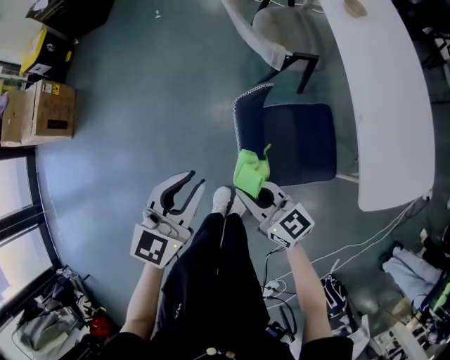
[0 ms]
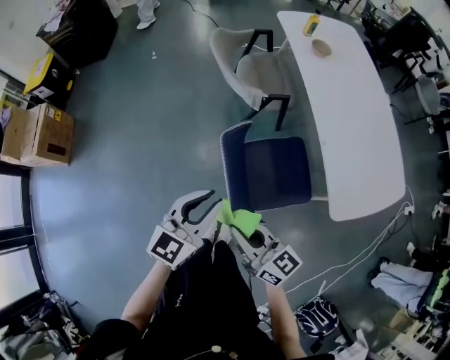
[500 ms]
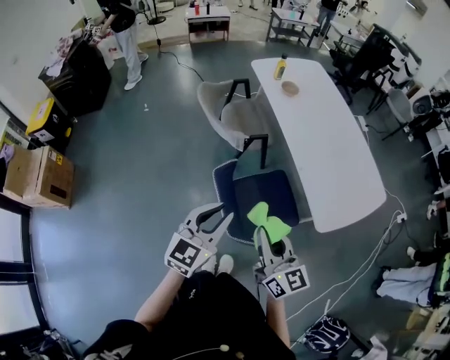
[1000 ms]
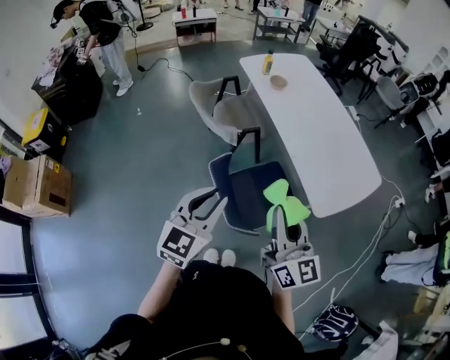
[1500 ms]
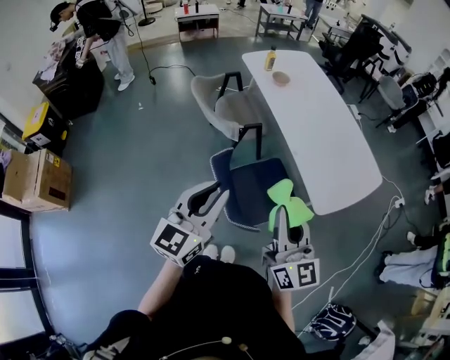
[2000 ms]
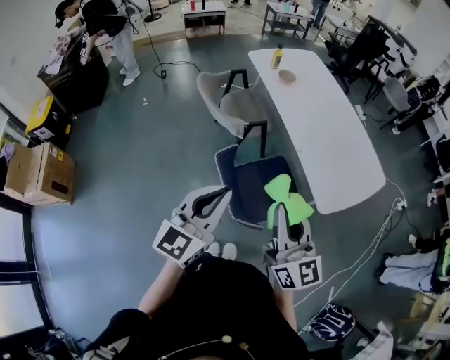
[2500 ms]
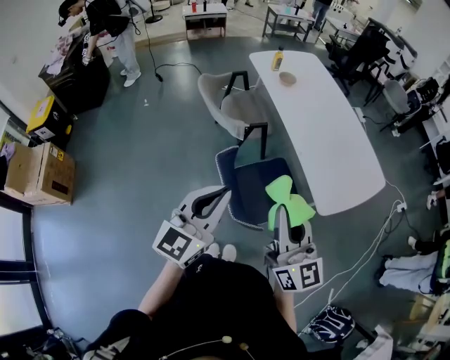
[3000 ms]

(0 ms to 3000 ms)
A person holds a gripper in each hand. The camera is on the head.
0 ms - 1500 ms: The right gripper goes approximately 30 cm upward, and changes its angle by some 60 degrees. Meanwhile the left gripper goes about 20 cm upward.
1500 ms - 3000 ms: There are only small adjustments of the grippers.

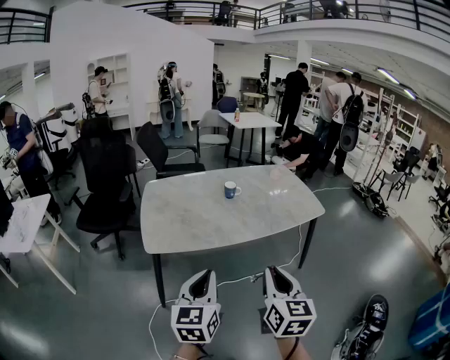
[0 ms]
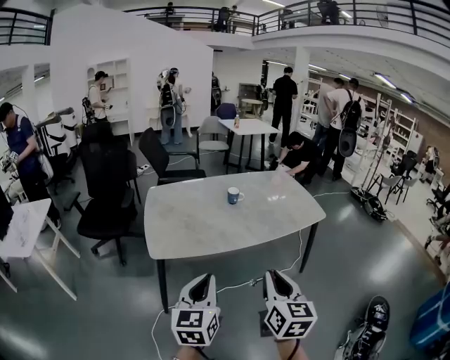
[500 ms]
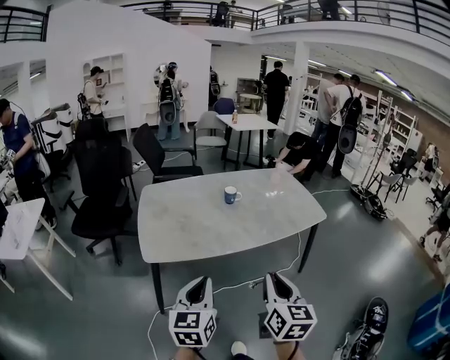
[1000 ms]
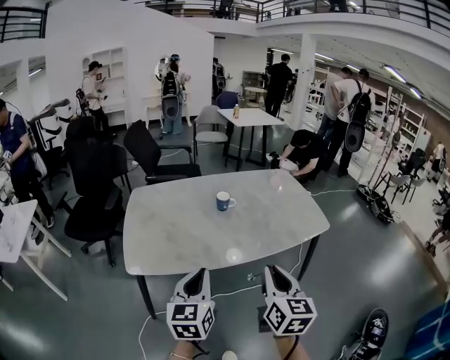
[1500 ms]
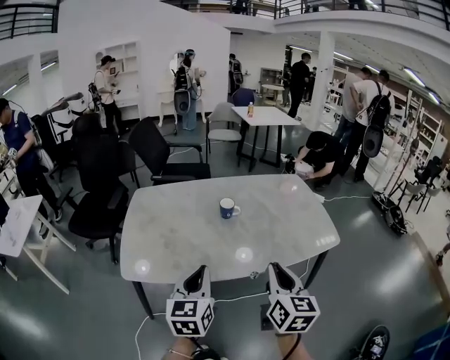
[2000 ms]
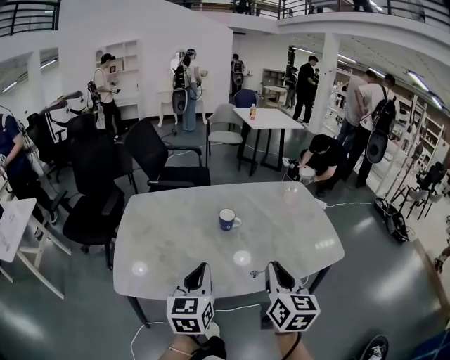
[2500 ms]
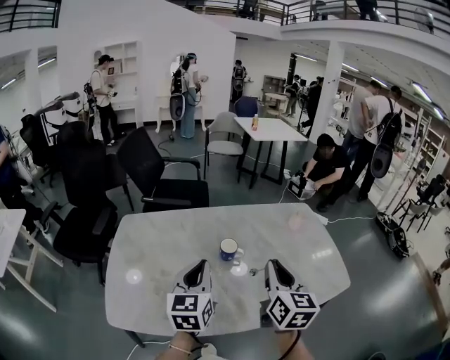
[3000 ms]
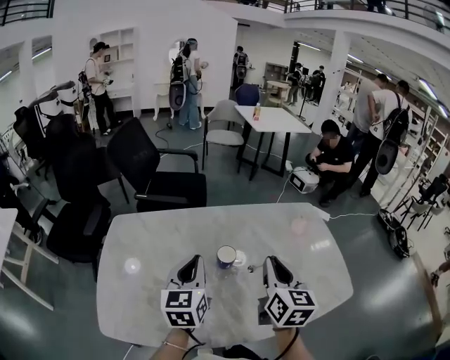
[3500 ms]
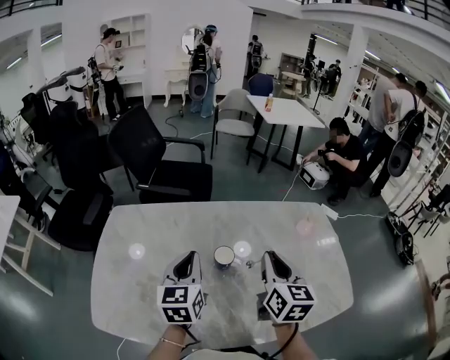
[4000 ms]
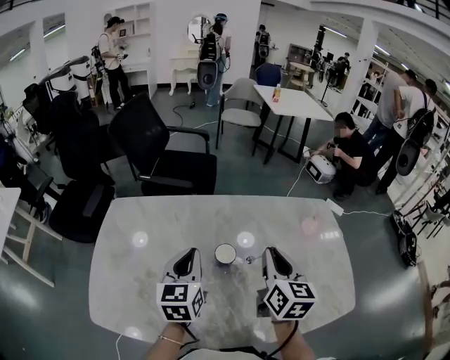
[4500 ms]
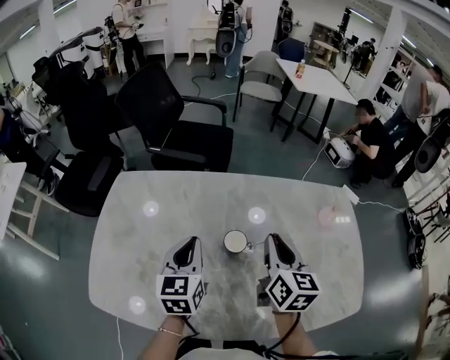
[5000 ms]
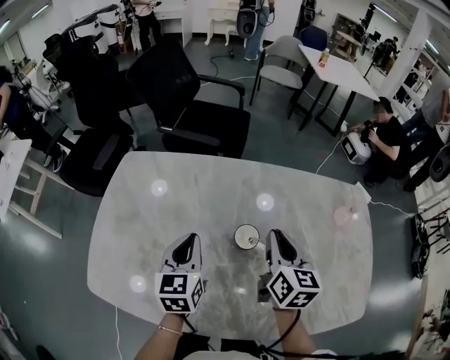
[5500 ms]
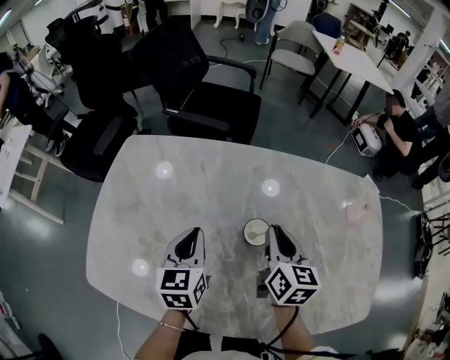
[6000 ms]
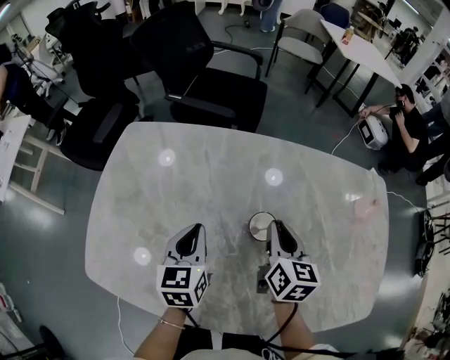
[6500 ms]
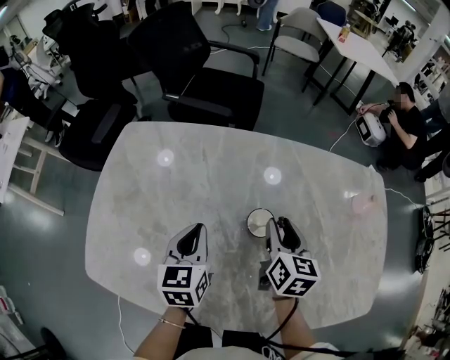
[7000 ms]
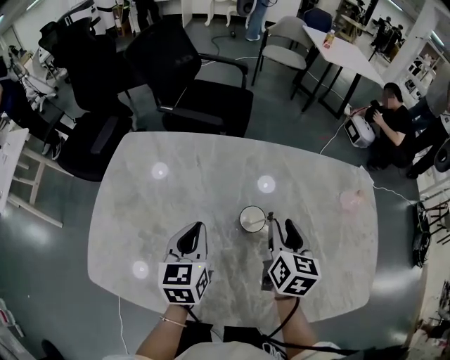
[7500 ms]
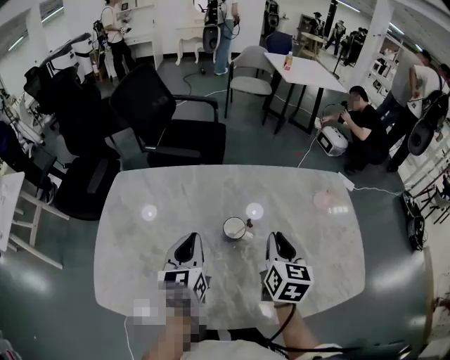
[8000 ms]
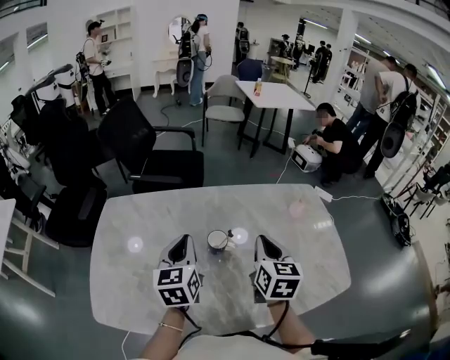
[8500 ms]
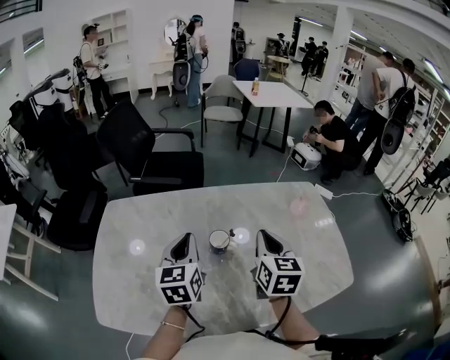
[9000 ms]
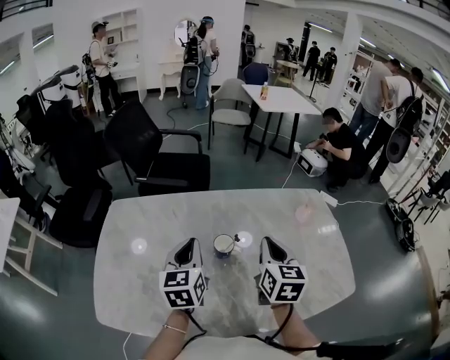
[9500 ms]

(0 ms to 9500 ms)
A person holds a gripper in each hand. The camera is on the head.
0 ms - 2000 ms: The grippers both shift forward by some 20 cm.
2000 ms - 4000 ms: Both grippers travel together forward, some 30 cm.
4000 ms - 5500 ms: The left gripper goes roughly 10 cm downward. Meanwhile the right gripper is displaced downward and forward by roughly 10 cm.
5500 ms - 7500 ms: The right gripper opens its fingers.
7500 ms - 9500 ms: The two grippers go some 10 cm upward. The right gripper closes its fingers.

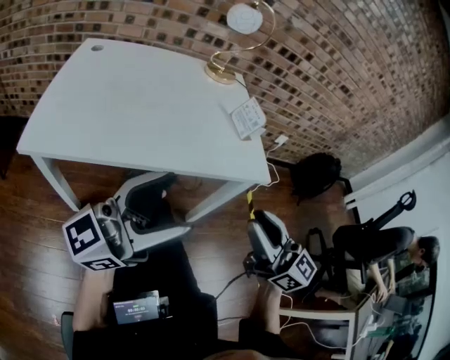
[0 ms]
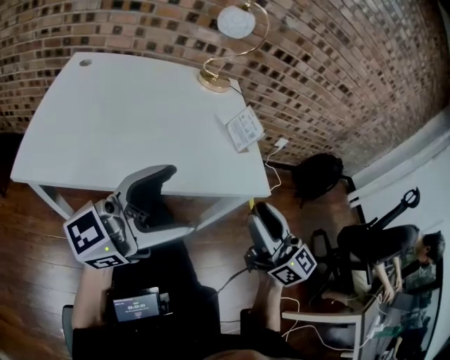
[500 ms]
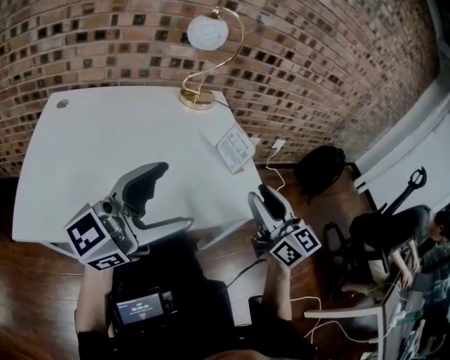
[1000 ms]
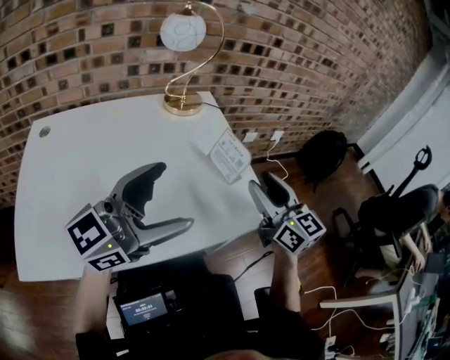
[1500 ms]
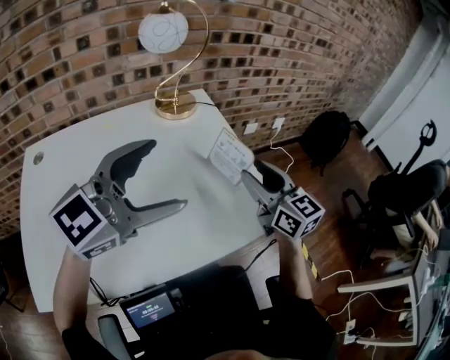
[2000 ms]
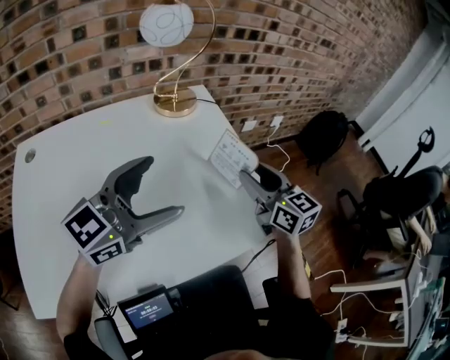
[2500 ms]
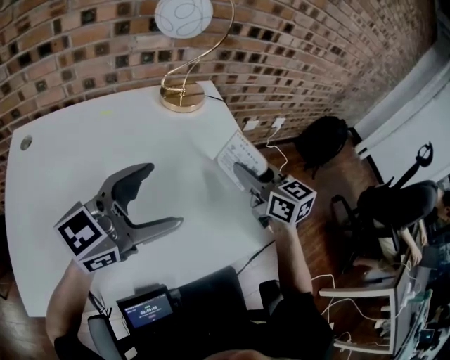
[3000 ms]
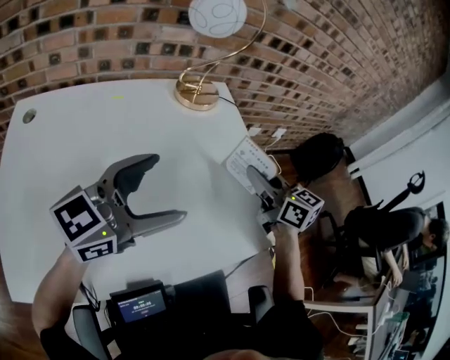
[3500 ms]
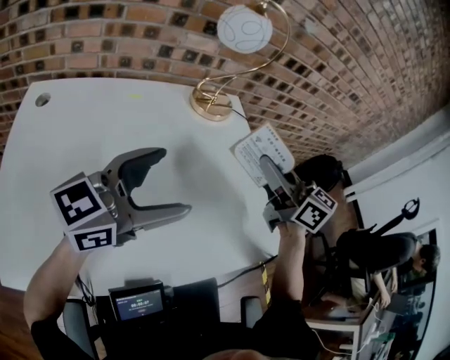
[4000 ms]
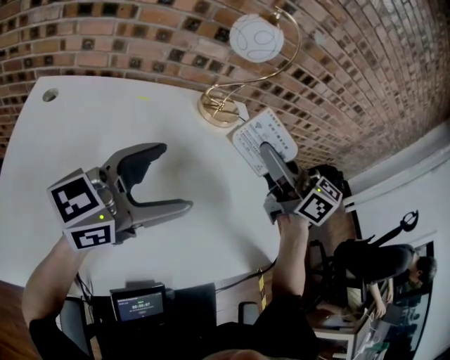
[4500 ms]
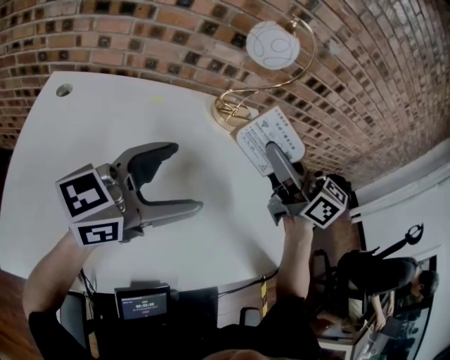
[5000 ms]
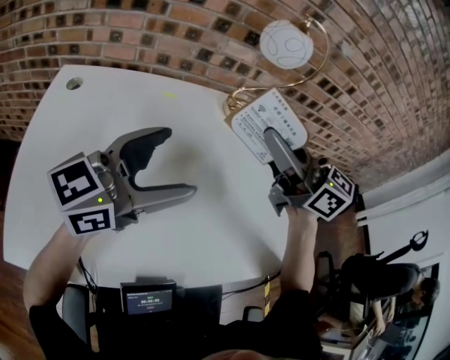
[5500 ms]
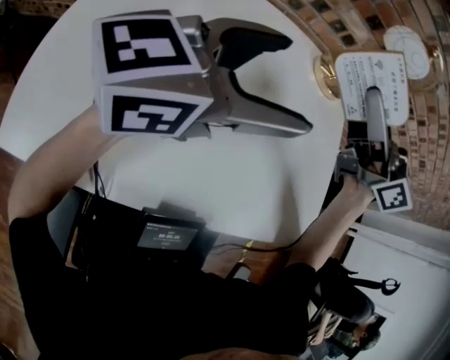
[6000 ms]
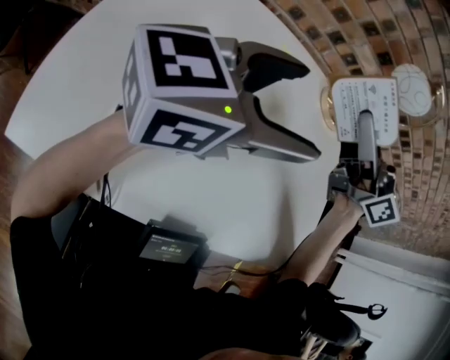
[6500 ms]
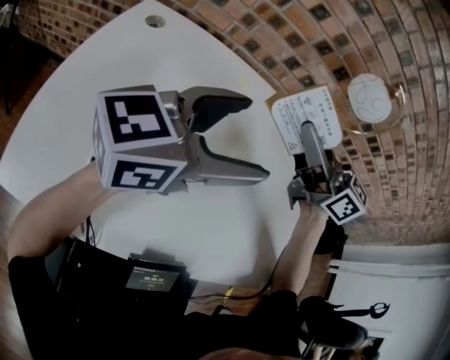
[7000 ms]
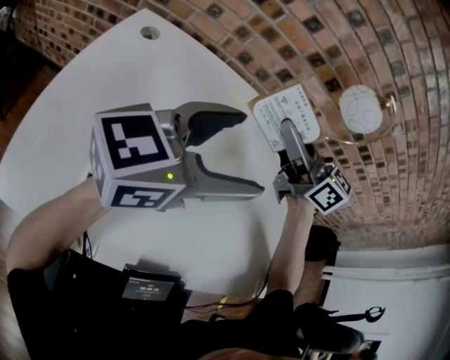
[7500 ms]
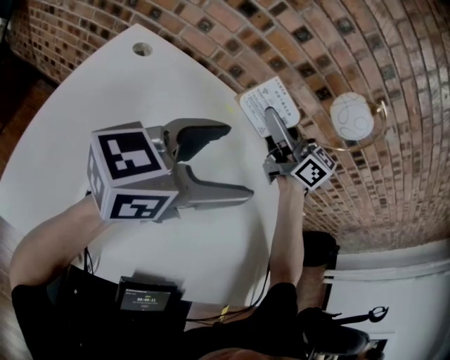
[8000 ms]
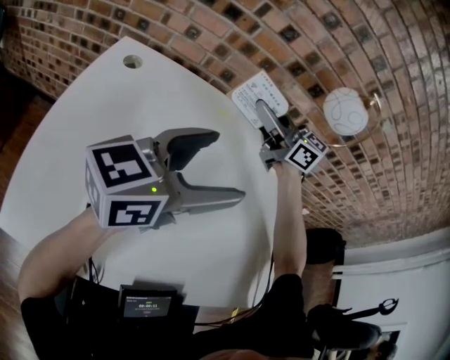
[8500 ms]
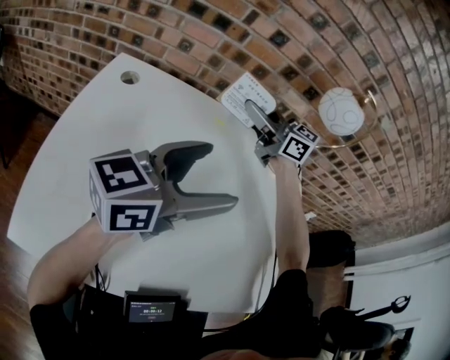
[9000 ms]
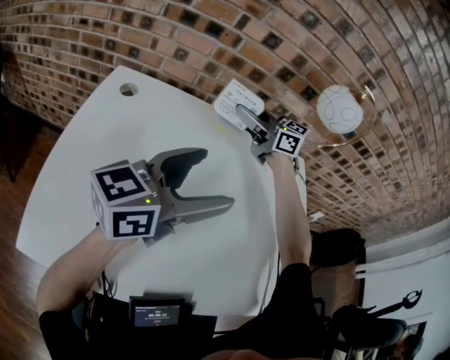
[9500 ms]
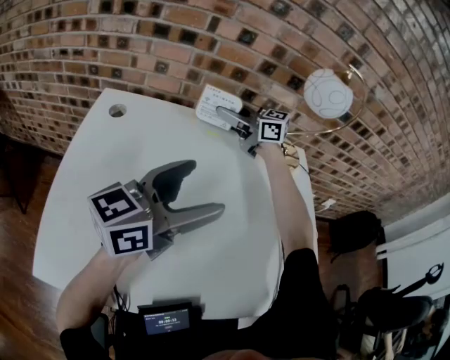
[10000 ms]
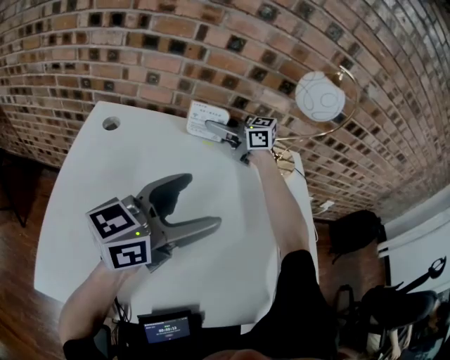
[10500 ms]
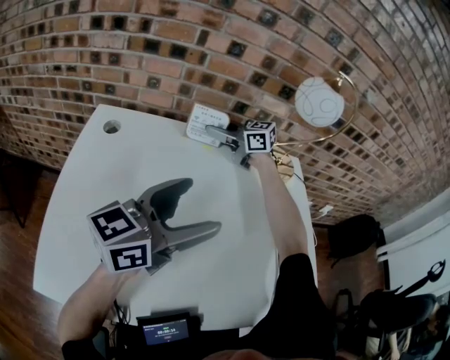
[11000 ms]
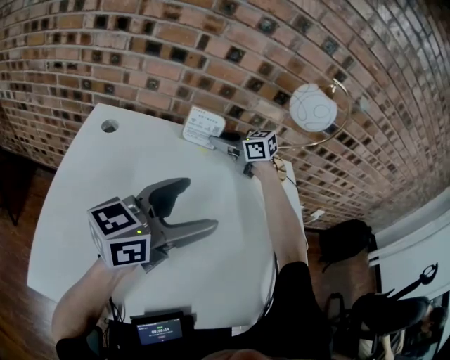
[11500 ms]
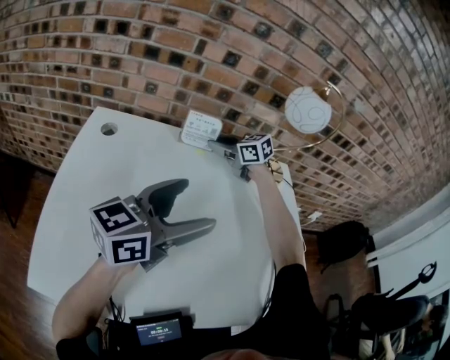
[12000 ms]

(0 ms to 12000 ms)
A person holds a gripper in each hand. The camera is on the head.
0 ms - 2000 ms: The grippers both shift forward by roughly 30 cm. The right gripper changes its angle by approximately 30 degrees, and opens. The left gripper tips its fingers downward by roughly 30 degrees.
2000 ms - 4000 ms: The right gripper is displaced to the left and upward by roughly 10 cm, changes its angle by roughly 20 degrees, and closes its fingers; the left gripper moves to the left and downward, approximately 10 cm, and rotates some 20 degrees.
4000 ms - 6000 ms: The right gripper heads to the left and upward, covering about 20 cm, and swivels about 30 degrees. Meanwhile the left gripper shifts roughly 5 cm to the left.
6000 ms - 8000 ms: The right gripper heads forward, downward and to the left, covering about 20 cm.
8000 ms - 10000 ms: The right gripper shifts by approximately 15 cm.
10000 ms - 12000 ms: The right gripper moves downward, about 5 cm, and turns by roughly 20 degrees.

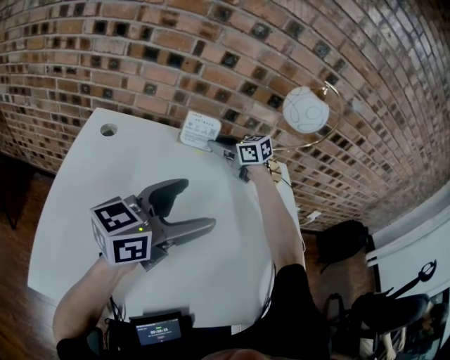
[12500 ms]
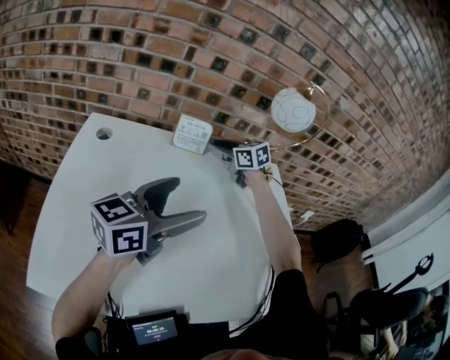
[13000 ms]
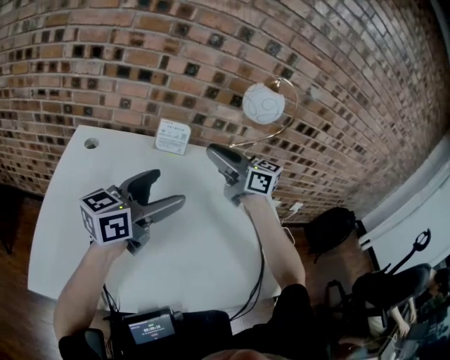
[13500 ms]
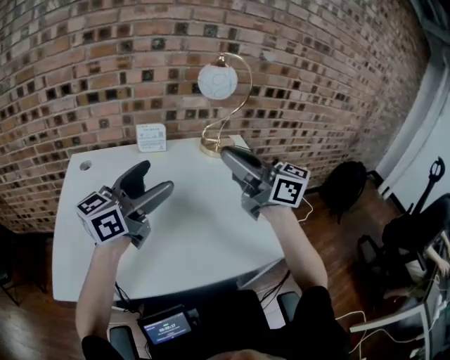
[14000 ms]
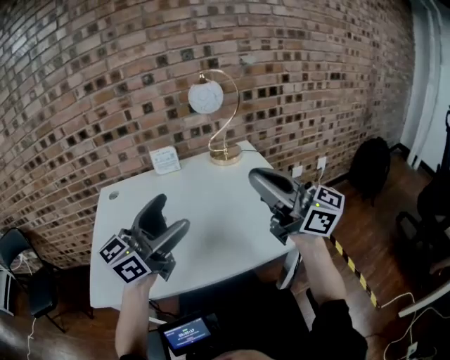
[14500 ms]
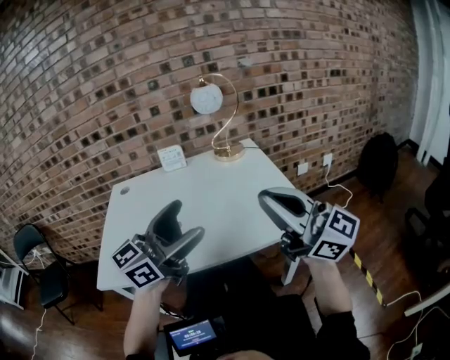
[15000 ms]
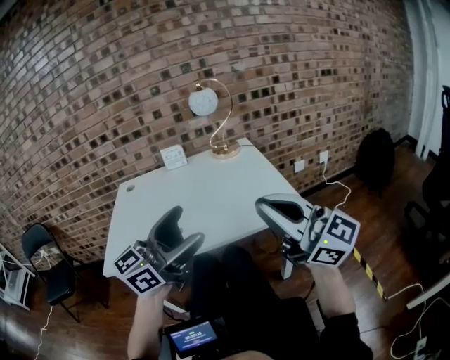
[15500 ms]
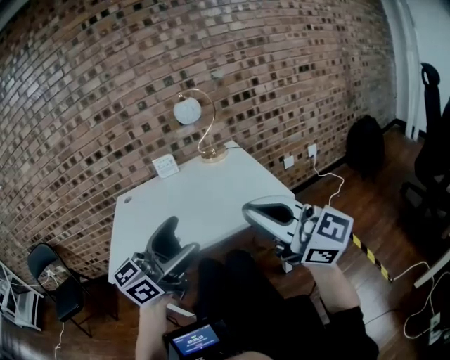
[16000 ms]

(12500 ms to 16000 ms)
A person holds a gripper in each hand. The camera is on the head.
12500 ms - 14500 ms: The left gripper is displaced backward and upward by about 15 cm, while the right gripper travels backward and upward by some 50 cm, and tilts its fingers approximately 50 degrees upward.
14500 ms - 16000 ms: The two grippers go approximately 25 cm backward.
